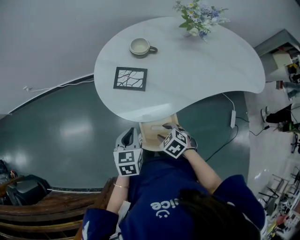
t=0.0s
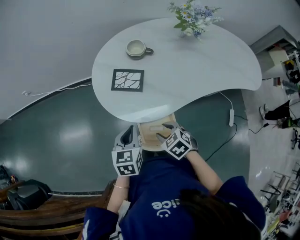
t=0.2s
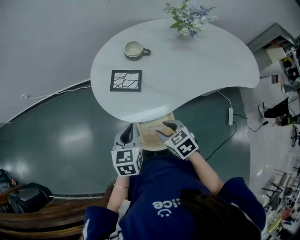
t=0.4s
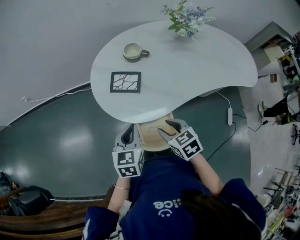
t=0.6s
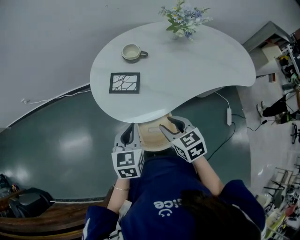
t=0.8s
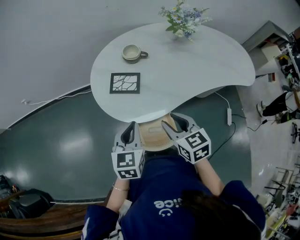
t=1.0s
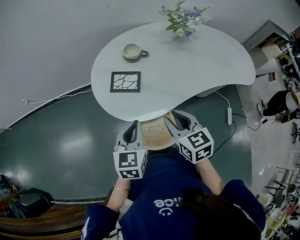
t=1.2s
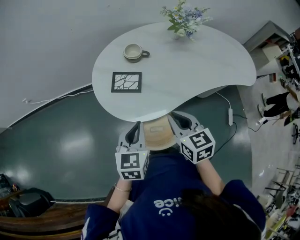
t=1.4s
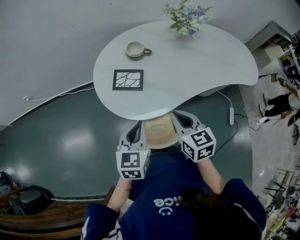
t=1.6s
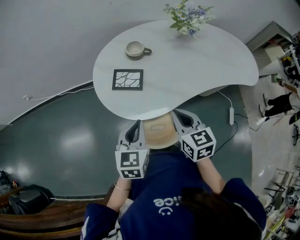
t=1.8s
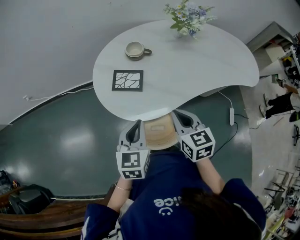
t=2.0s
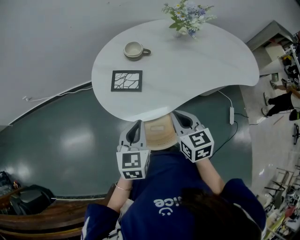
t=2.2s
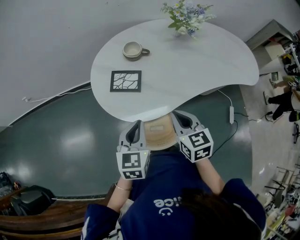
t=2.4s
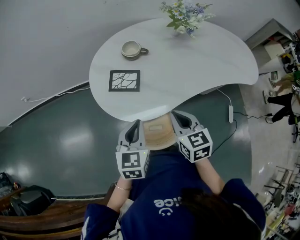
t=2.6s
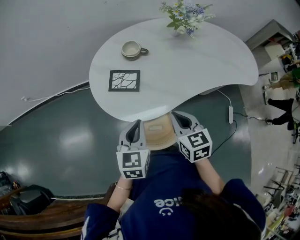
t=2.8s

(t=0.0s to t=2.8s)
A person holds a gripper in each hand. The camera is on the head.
t=0.0s - t=1.4s: The left gripper travels upward by roughly 10 cm, while the right gripper shifts roughly 20 cm upward, angles its fingers upward, by roughly 40 degrees, and closes.
t=1.4s - t=2.8s: The grippers move only a little.

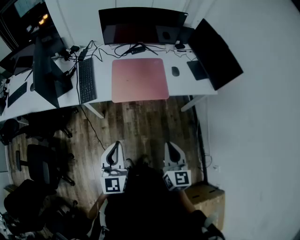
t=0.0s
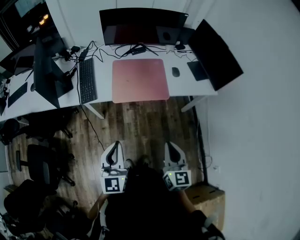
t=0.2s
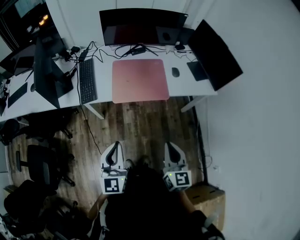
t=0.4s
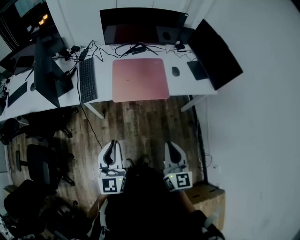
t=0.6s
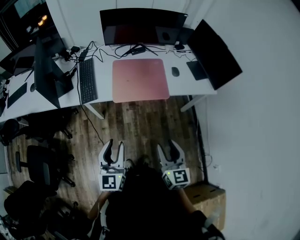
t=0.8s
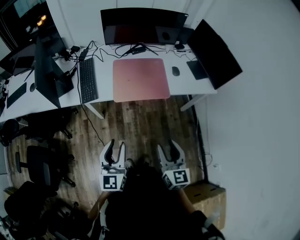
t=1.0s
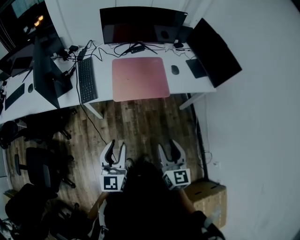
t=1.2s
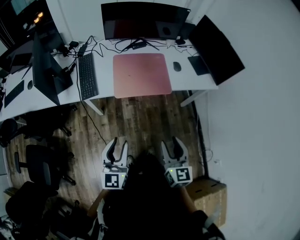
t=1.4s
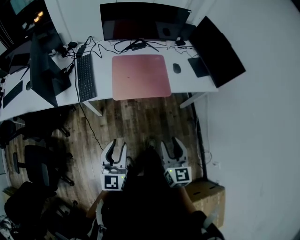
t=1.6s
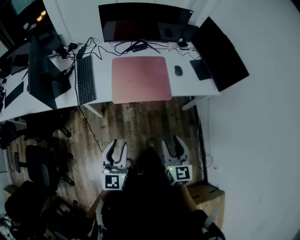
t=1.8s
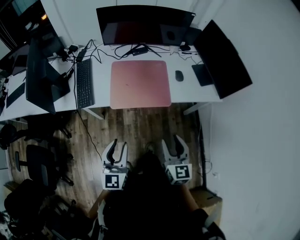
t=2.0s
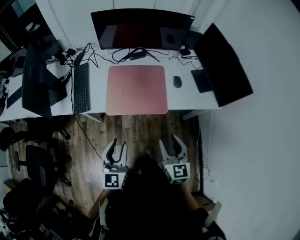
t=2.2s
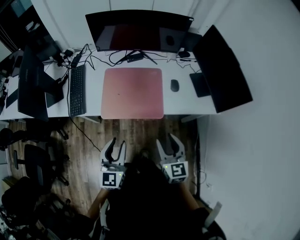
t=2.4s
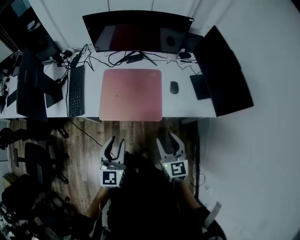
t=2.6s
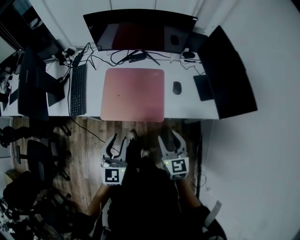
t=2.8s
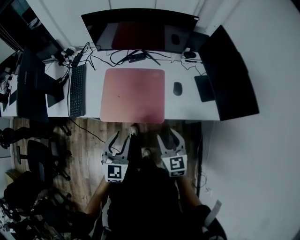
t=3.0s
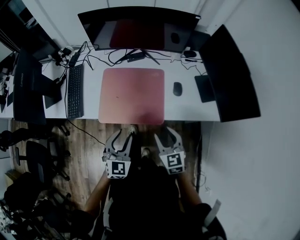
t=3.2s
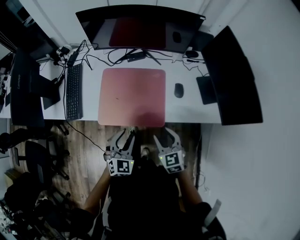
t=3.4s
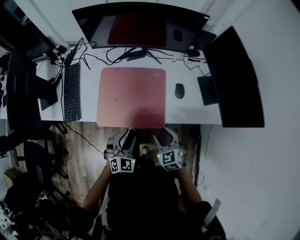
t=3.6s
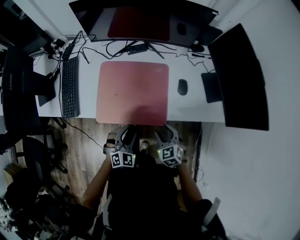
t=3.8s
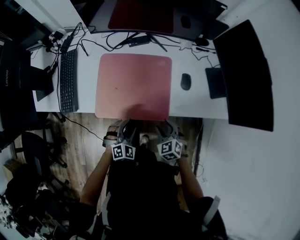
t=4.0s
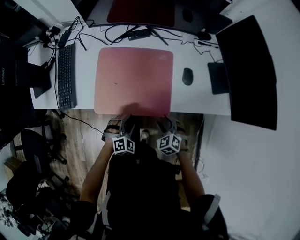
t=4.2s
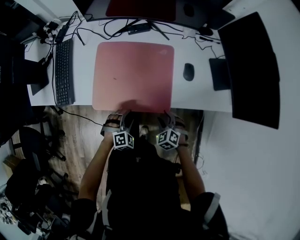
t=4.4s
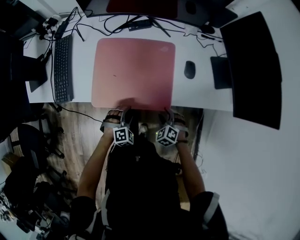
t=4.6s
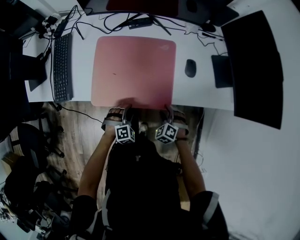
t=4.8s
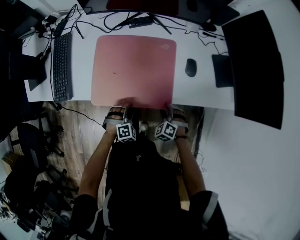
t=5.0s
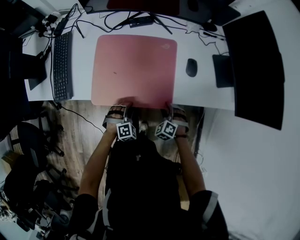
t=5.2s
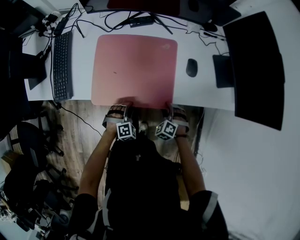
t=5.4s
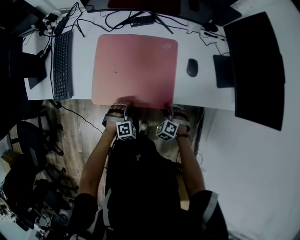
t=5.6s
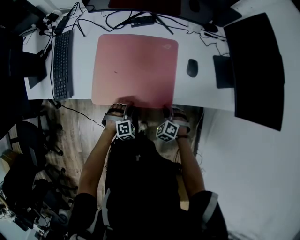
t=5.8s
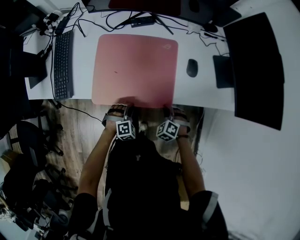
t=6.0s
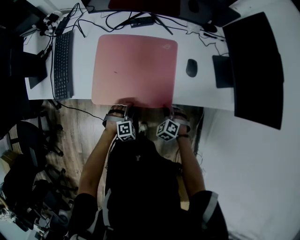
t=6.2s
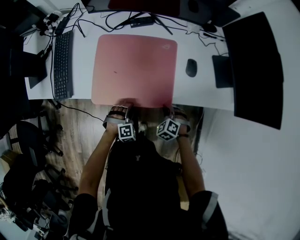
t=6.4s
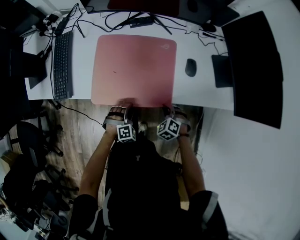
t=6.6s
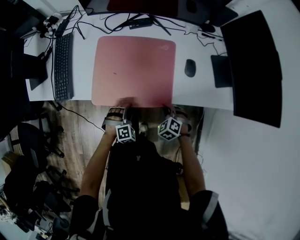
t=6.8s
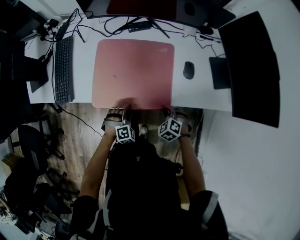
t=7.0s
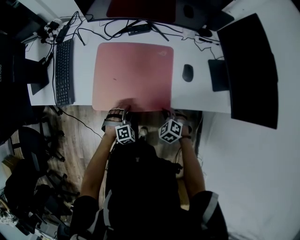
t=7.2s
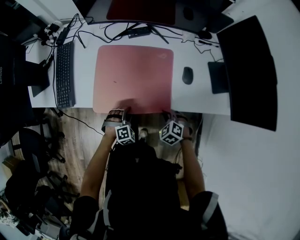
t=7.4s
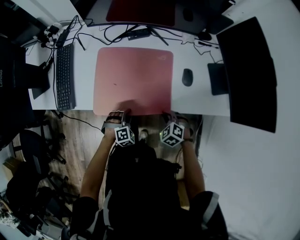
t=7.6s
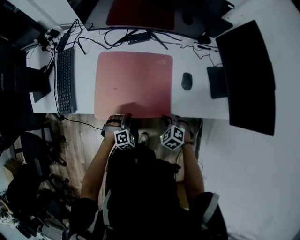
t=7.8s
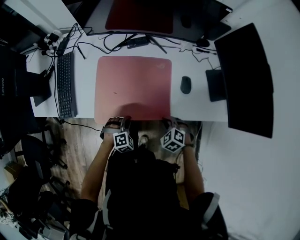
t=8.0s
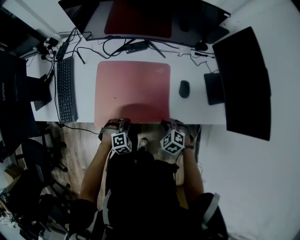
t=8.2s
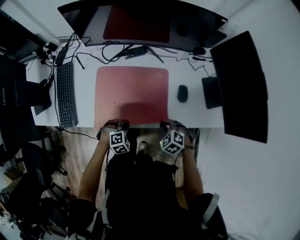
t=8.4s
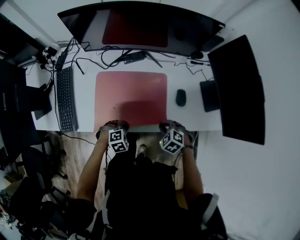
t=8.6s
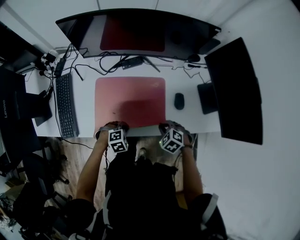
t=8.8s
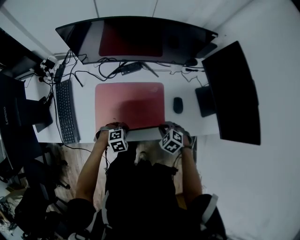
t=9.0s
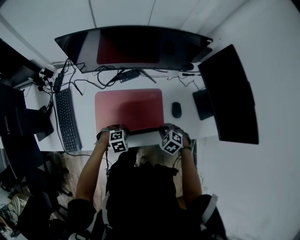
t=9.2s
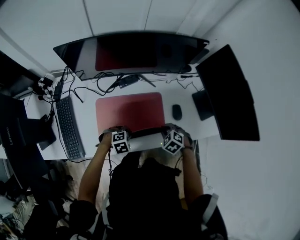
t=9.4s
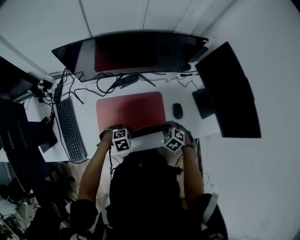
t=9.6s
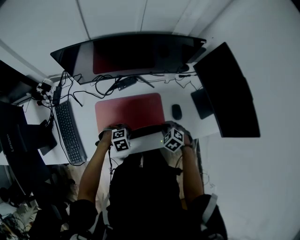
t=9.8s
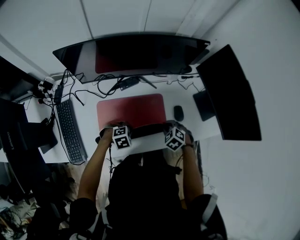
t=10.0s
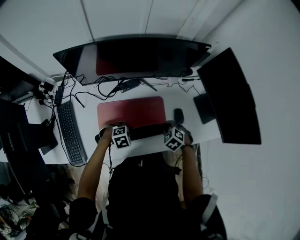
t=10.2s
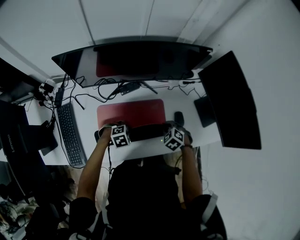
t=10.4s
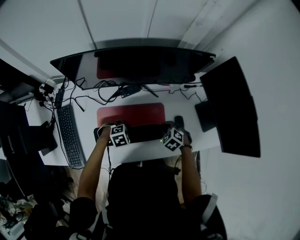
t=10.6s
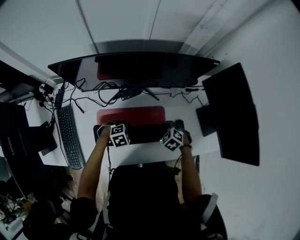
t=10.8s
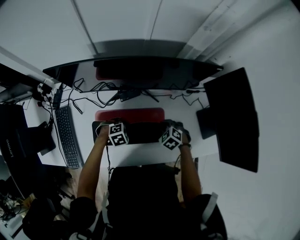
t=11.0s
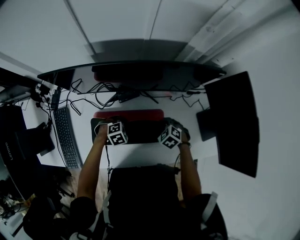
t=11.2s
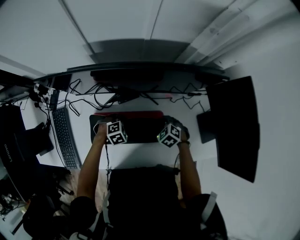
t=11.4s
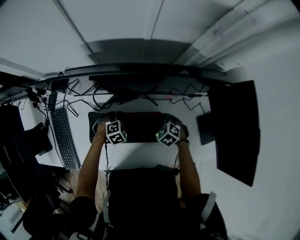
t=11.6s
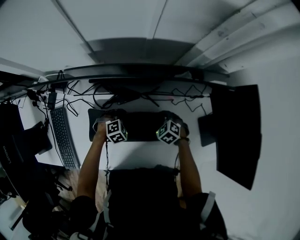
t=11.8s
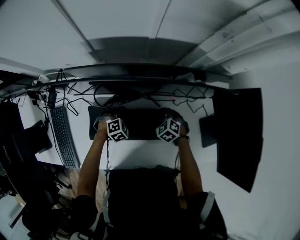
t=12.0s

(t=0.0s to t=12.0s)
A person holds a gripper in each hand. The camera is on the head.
t=0.0s - t=1.6s: The right gripper opens up. Meanwhile the left gripper shifts by some 5 cm, and opens.
t=1.6s - t=3.0s: The grippers both shift forward and to the right by some 30 cm. The right gripper rotates approximately 20 degrees; the left gripper rotates approximately 20 degrees.
t=3.0s - t=4.4s: Both grippers move downward, roughly 30 cm. The left gripper tips its fingers downward by roughly 40 degrees. The right gripper tips its fingers downward by roughly 30 degrees.
t=4.4s - t=6.0s: The right gripper closes its fingers. The left gripper closes.
t=6.0s - t=7.6s: The left gripper opens, then closes once more; the right gripper is displaced upward by approximately 5 cm.
t=7.6s - t=9.0s: The grippers both shift forward and upward by about 10 cm. The left gripper changes its angle by approximately 30 degrees.
t=9.0s - t=10.4s: The right gripper is displaced forward by approximately 10 cm; the left gripper is displaced forward and to the left by some 10 cm.
t=10.4s - t=12.0s: The left gripper changes place by some 20 cm, and changes its angle by roughly 20 degrees. The right gripper ends up roughly 20 cm from where it was.

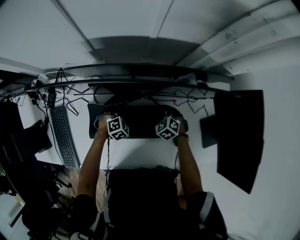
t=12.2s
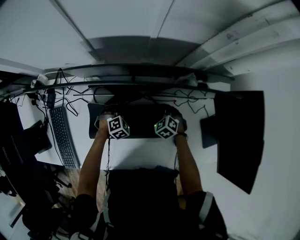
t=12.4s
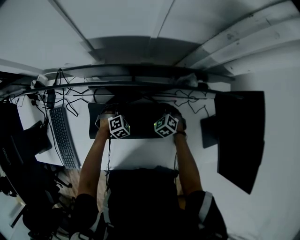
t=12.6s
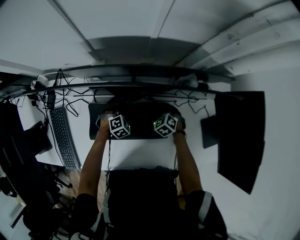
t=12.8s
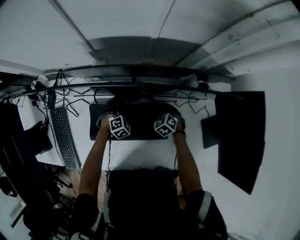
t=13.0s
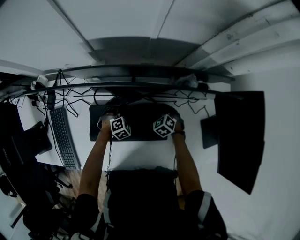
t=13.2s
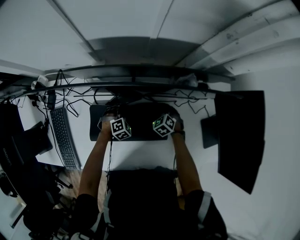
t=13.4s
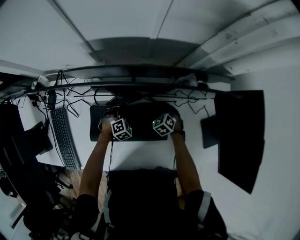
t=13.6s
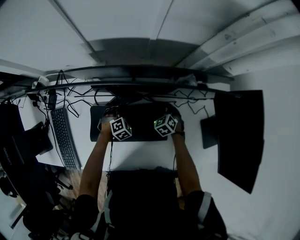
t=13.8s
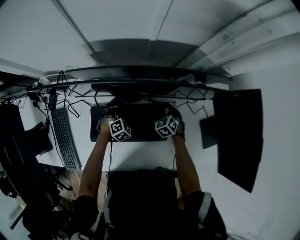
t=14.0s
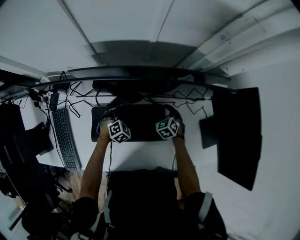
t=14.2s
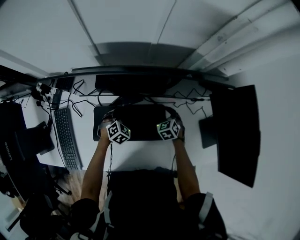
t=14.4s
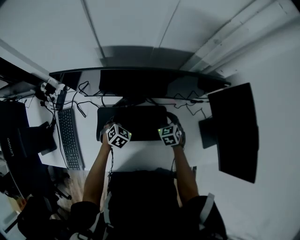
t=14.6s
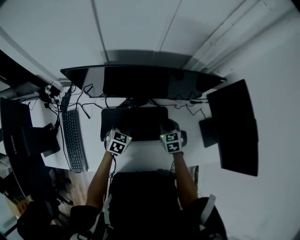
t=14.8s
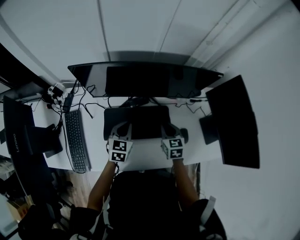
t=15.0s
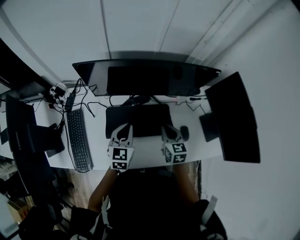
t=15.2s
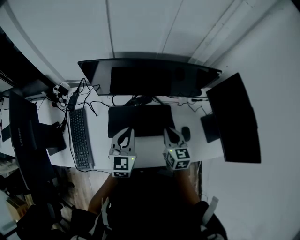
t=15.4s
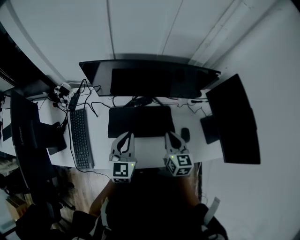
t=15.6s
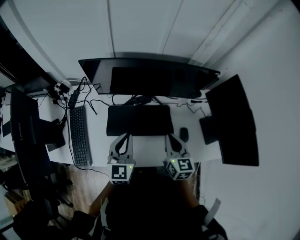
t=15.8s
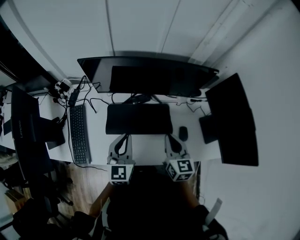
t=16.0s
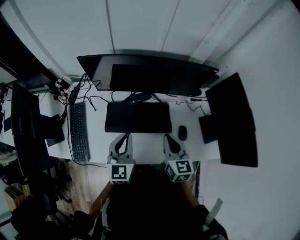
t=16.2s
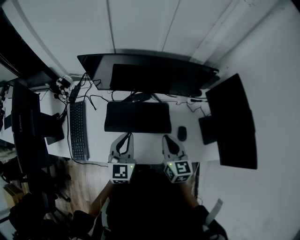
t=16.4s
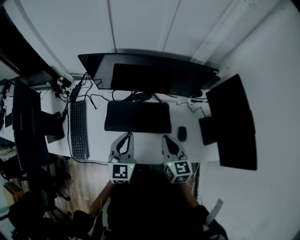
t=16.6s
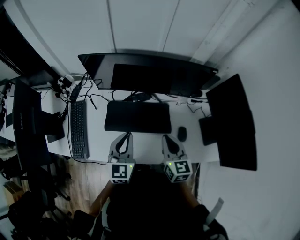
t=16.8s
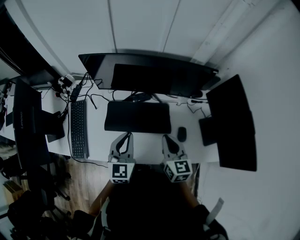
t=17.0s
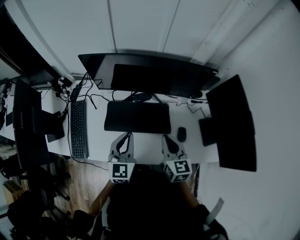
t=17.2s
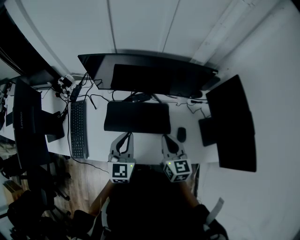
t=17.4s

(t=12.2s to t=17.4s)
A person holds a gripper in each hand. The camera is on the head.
t=12.2s - t=14.0s: The left gripper opens its fingers.
t=14.0s - t=15.6s: Both grippers move upward and backward, approximately 35 cm. The right gripper angles its fingers upward, by some 30 degrees, and closes its fingers. Meanwhile the left gripper tips its fingers upward by some 50 degrees, and closes up.
t=15.6s - t=17.4s: The left gripper changes place by approximately 5 cm.

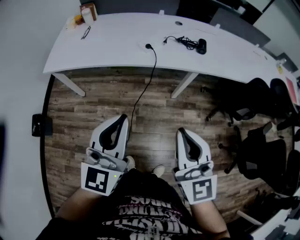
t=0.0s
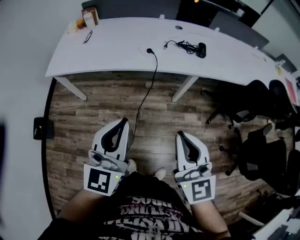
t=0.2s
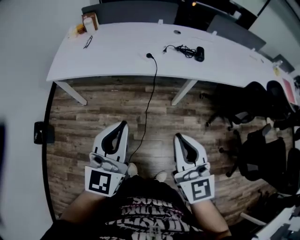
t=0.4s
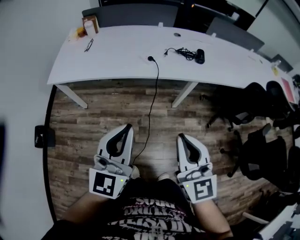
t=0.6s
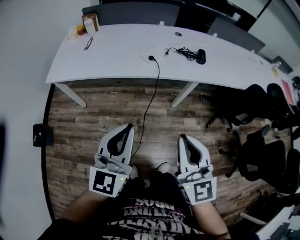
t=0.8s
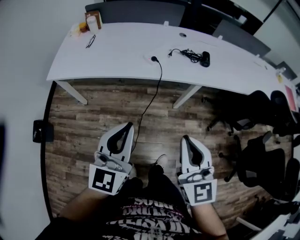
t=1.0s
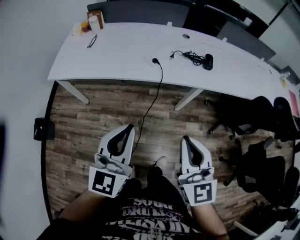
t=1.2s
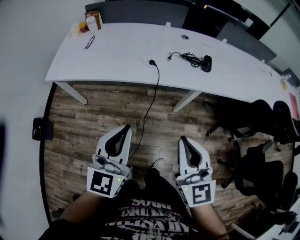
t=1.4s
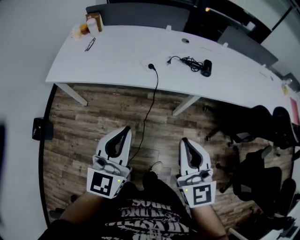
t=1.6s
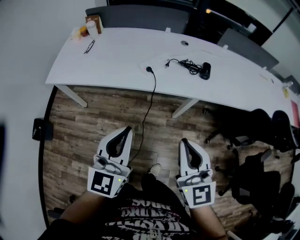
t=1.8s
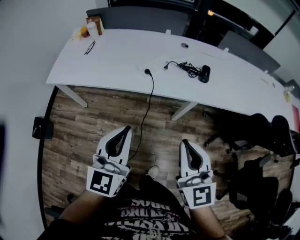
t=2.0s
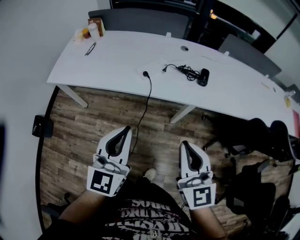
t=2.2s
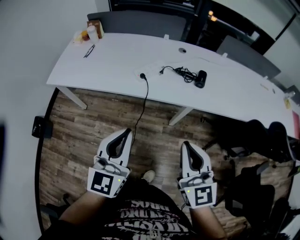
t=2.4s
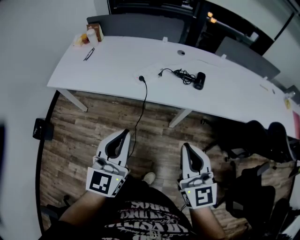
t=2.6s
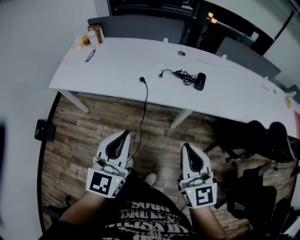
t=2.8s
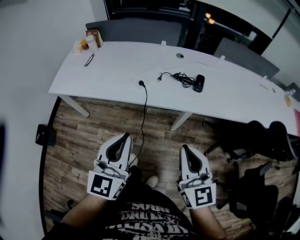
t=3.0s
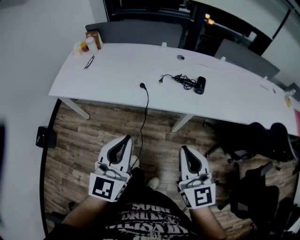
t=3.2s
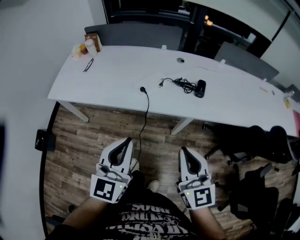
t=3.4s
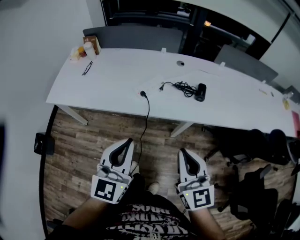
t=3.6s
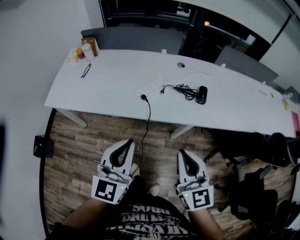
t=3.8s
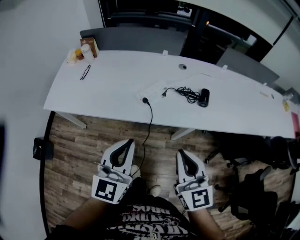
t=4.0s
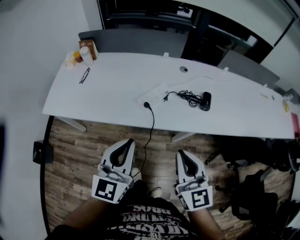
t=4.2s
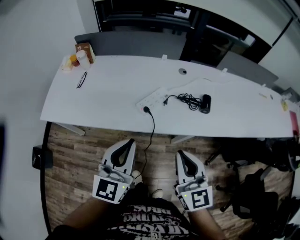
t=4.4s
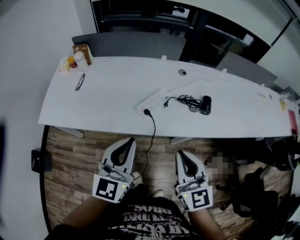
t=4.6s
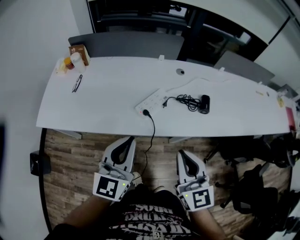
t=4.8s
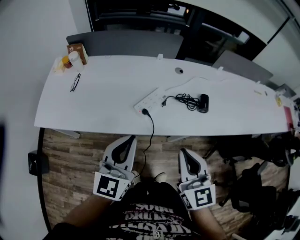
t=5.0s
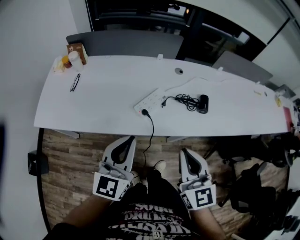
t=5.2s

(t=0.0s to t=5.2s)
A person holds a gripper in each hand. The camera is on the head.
t=0.0s - t=1.8s: The left gripper travels forward by approximately 10 cm; the right gripper travels forward and to the right by about 10 cm.
t=1.8s - t=3.4s: The left gripper heads to the right, covering some 5 cm. The right gripper goes roughly 10 cm to the right and forward.
t=3.4s - t=5.2s: The two grippers go about 20 cm forward and to the left.
